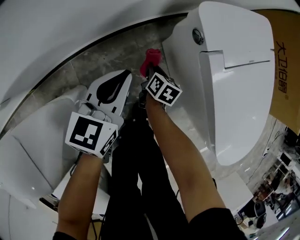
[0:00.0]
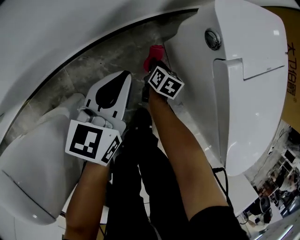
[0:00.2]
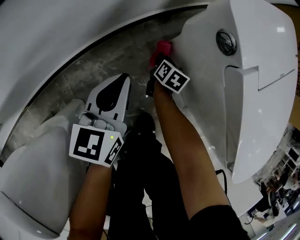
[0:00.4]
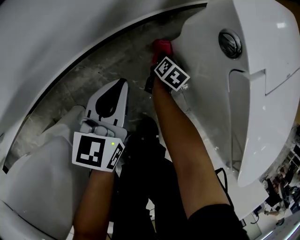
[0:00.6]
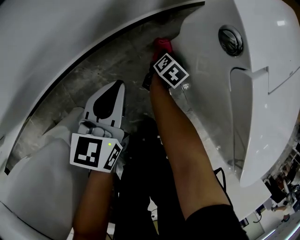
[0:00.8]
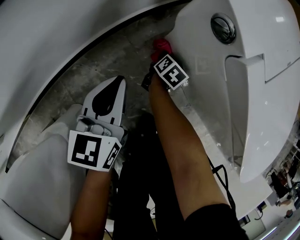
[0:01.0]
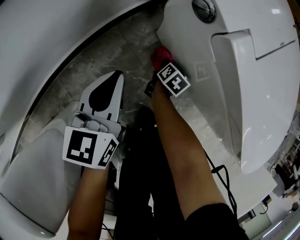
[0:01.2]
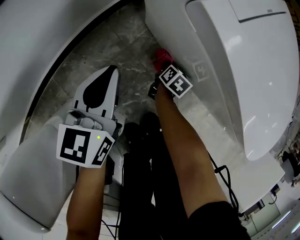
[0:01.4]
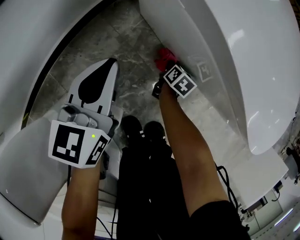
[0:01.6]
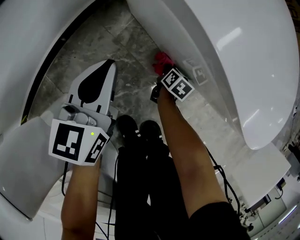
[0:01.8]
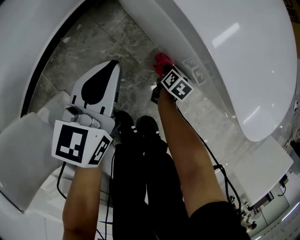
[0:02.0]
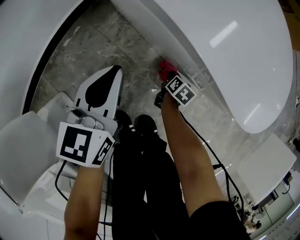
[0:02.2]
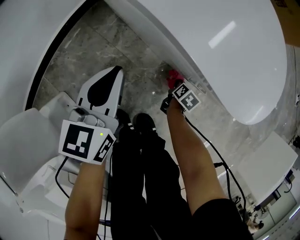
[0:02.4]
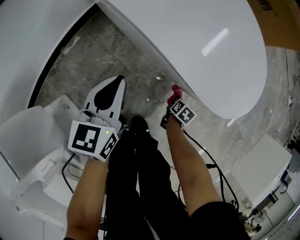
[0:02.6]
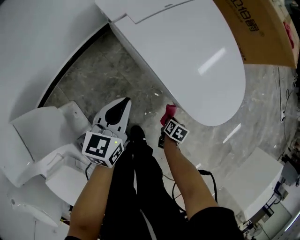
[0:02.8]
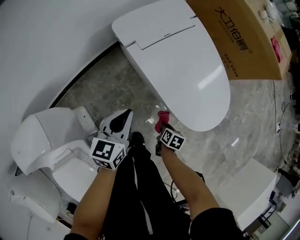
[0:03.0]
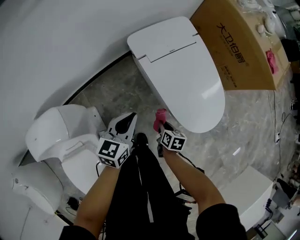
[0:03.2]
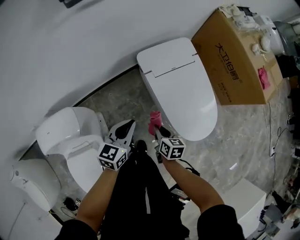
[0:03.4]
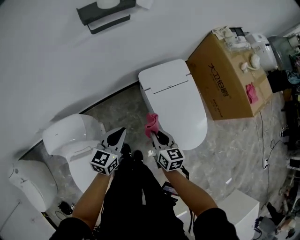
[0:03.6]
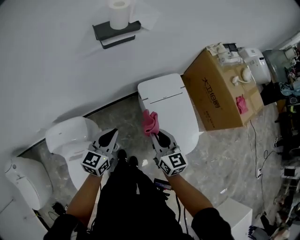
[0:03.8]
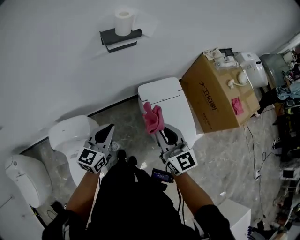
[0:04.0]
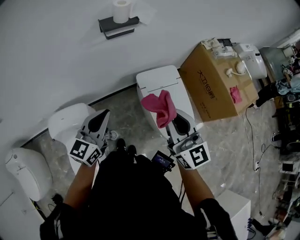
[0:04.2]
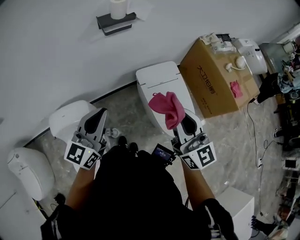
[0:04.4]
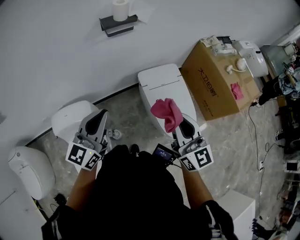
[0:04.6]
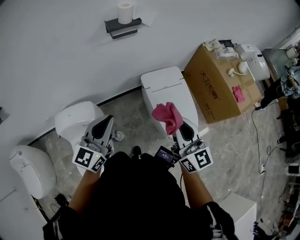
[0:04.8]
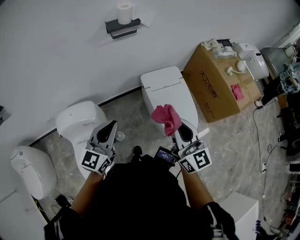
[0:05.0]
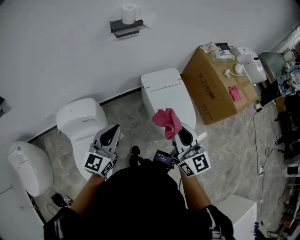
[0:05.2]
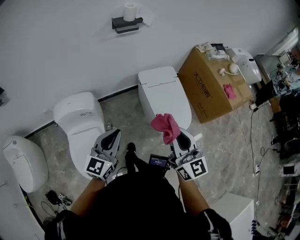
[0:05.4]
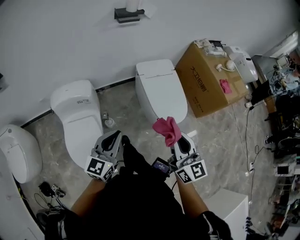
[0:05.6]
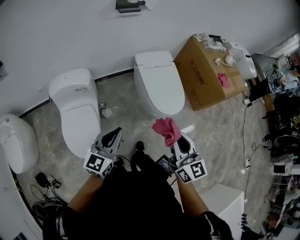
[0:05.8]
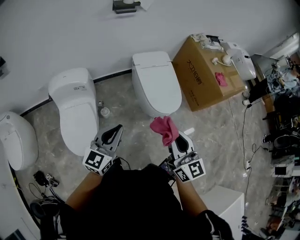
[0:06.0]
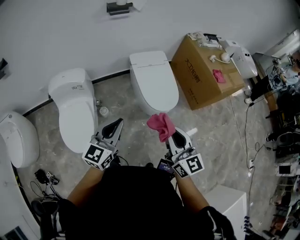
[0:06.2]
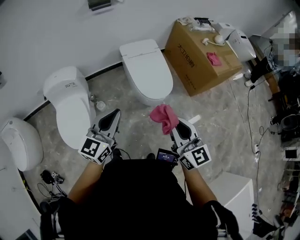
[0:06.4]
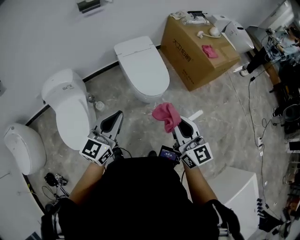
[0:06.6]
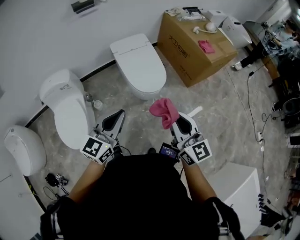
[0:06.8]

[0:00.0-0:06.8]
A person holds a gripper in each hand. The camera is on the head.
0:00.0 to 0:01.4: The right gripper heads to the right and downward, covering roughly 20 cm, and changes its angle by some 30 degrees. The left gripper moves downward, roughly 10 cm.
0:01.4 to 0:02.8: The right gripper shifts approximately 35 cm to the right, backward and upward. Meanwhile the left gripper goes roughly 20 cm to the right and upward.
0:02.8 to 0:04.0: The right gripper travels upward by about 80 cm, and angles its fingers upward, by some 70 degrees. The left gripper shifts some 50 cm upward, and turns by roughly 20 degrees.
0:04.0 to 0:05.4: Both grippers move backward, some 25 cm.
0:05.4 to 0:06.8: The two grippers go some 30 cm to the right and backward.

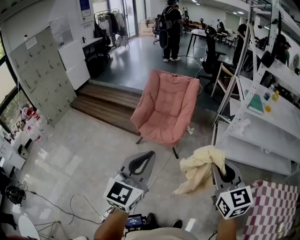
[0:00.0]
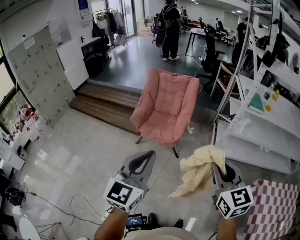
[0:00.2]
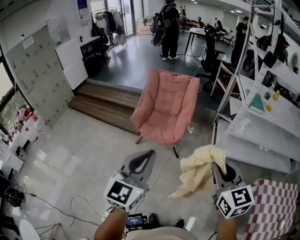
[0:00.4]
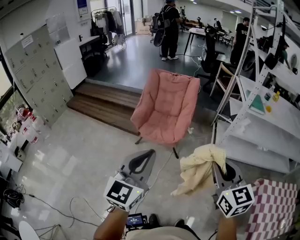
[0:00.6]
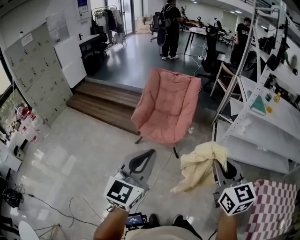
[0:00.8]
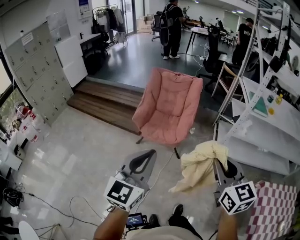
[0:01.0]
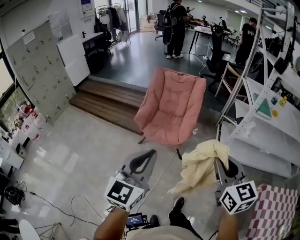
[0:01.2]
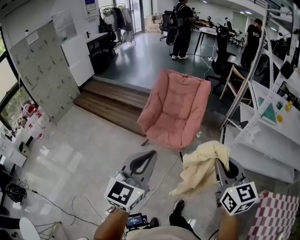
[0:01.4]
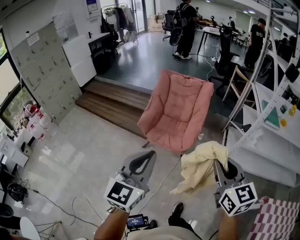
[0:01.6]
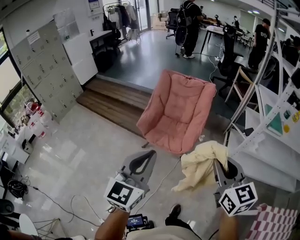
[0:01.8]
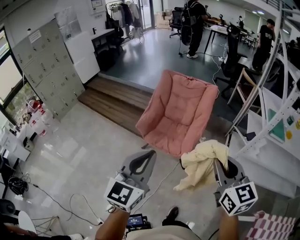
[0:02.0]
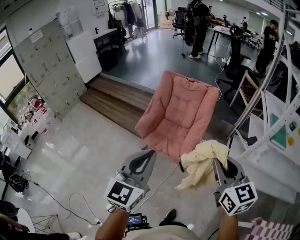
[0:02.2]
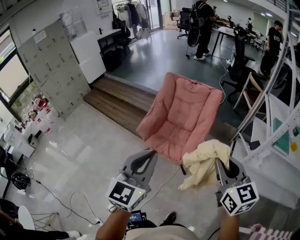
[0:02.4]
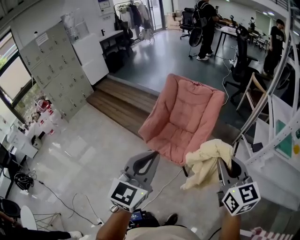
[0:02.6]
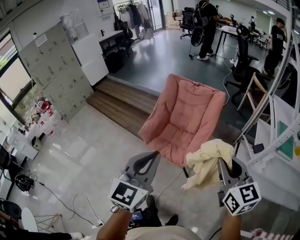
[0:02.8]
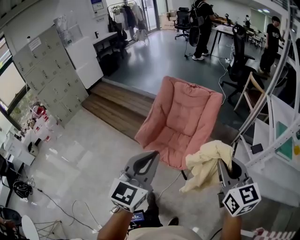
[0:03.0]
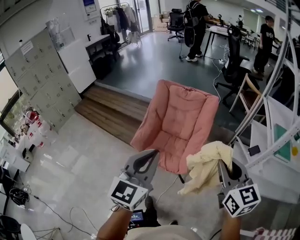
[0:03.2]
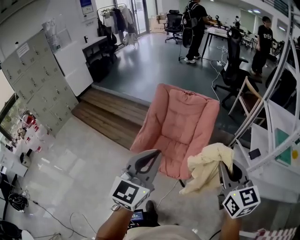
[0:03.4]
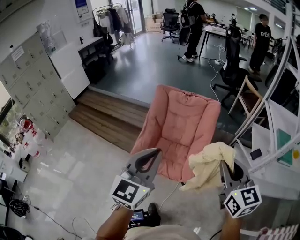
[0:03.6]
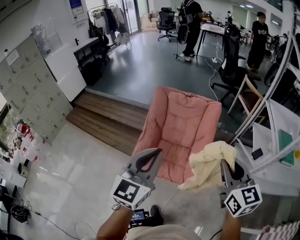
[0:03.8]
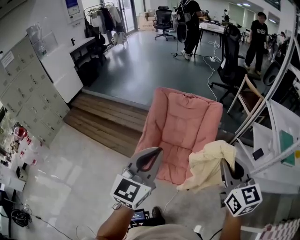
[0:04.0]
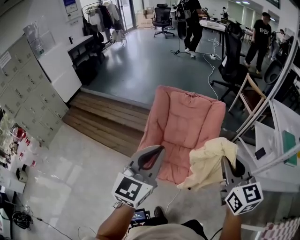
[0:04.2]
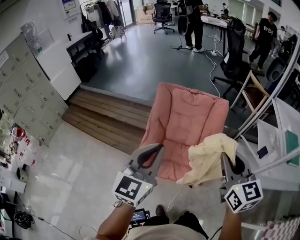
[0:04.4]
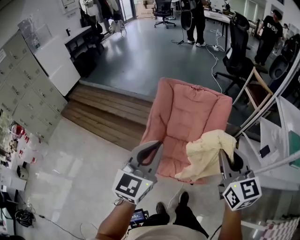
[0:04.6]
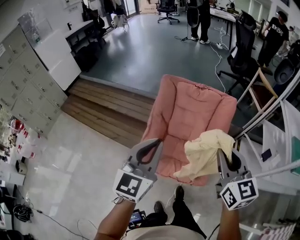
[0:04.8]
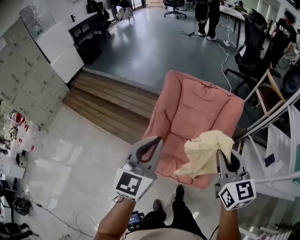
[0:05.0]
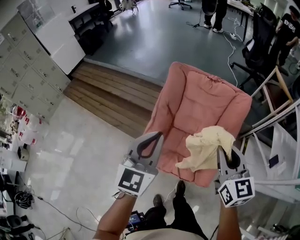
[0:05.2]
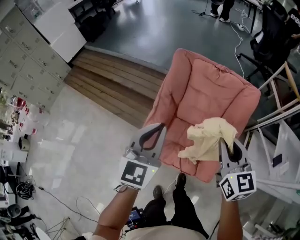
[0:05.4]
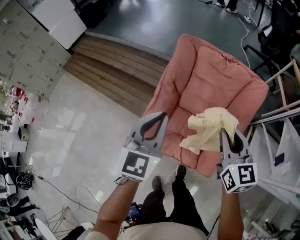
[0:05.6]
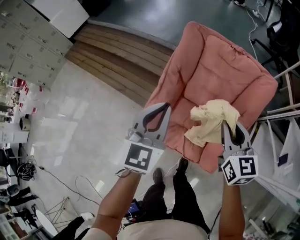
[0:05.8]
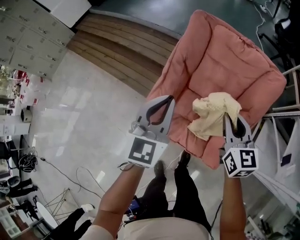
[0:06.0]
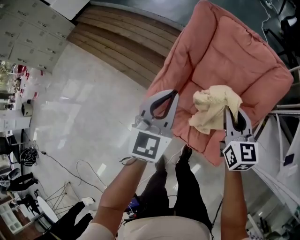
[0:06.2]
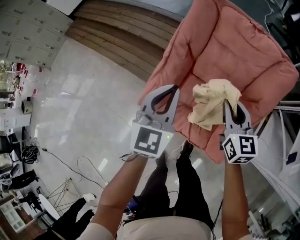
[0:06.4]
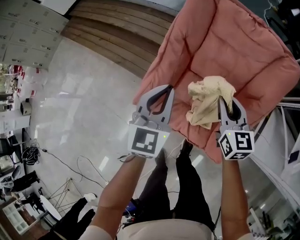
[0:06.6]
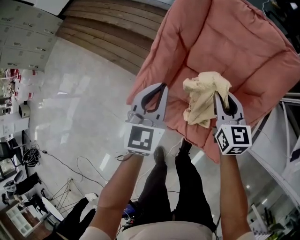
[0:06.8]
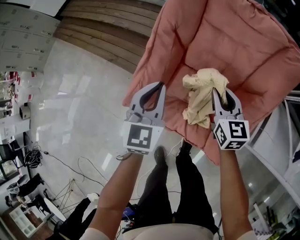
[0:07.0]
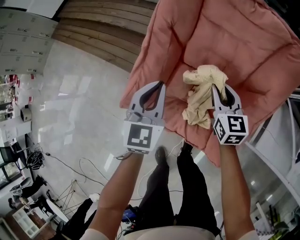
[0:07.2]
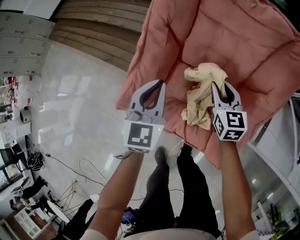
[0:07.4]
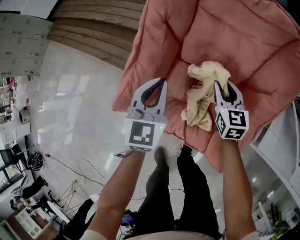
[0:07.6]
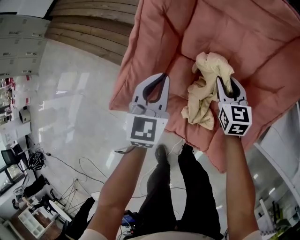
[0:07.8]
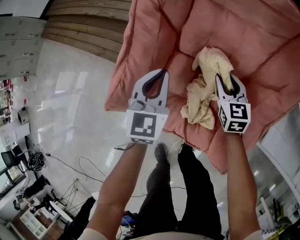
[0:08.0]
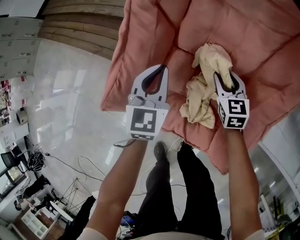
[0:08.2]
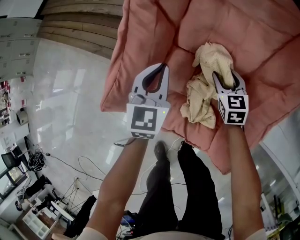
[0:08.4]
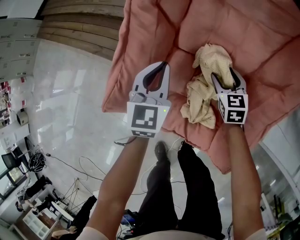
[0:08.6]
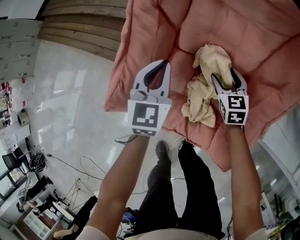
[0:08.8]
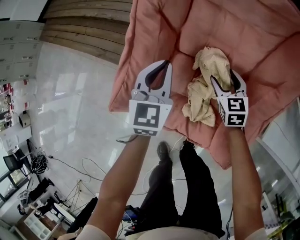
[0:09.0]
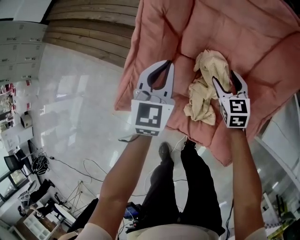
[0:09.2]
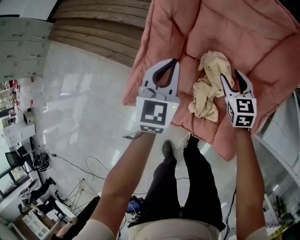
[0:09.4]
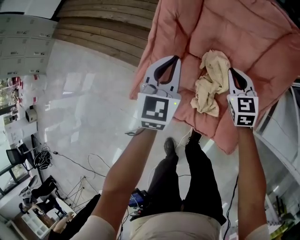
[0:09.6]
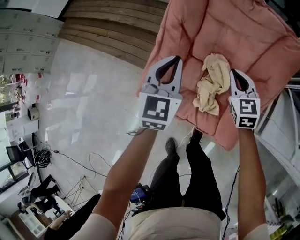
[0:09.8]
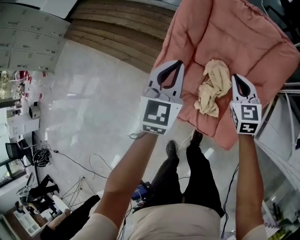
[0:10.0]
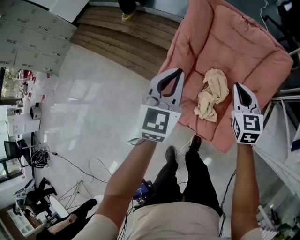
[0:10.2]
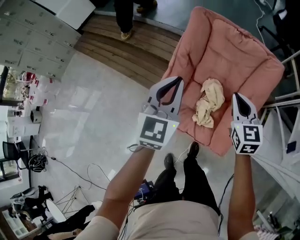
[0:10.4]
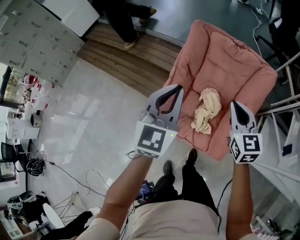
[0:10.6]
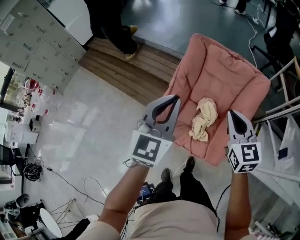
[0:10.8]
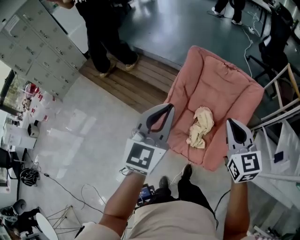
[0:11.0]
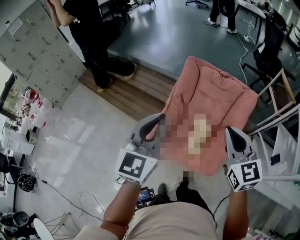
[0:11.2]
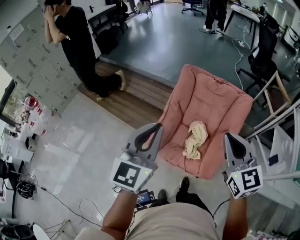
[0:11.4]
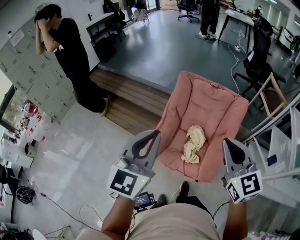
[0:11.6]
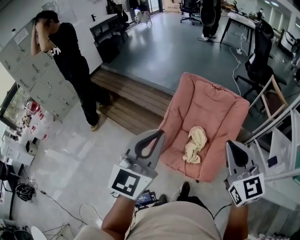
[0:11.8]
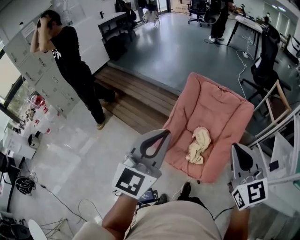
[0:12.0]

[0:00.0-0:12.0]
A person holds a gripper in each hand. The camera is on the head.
0:00.0 to 0:01.6: The two grippers go some 15 cm forward.
0:01.6 to 0:03.0: The left gripper goes some 25 cm forward and to the right, while the right gripper shifts roughly 25 cm forward.
0:03.0 to 0:04.4: Both grippers travel together forward and to the left, some 30 cm.
0:04.4 to 0:06.0: The two grippers go about 35 cm downward and forward.
0:06.0 to 0:07.6: The grippers both shift downward by some 30 cm.
0:07.6 to 0:09.0: The right gripper goes approximately 10 cm downward, and opens its fingers.
0:09.0 to 0:10.4: The two grippers go about 40 cm upward. The right gripper closes its fingers.
0:10.4 to 0:12.0: Both grippers travel together upward and backward, about 35 cm.

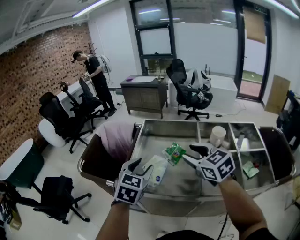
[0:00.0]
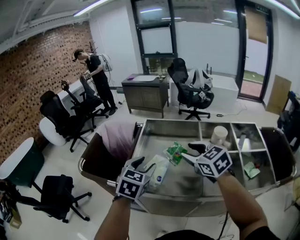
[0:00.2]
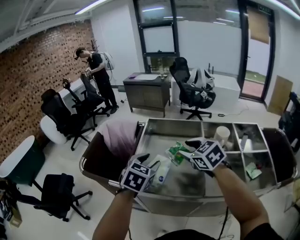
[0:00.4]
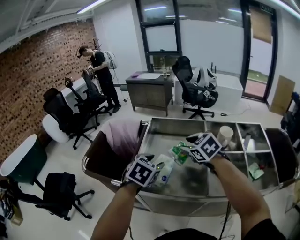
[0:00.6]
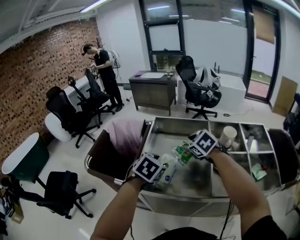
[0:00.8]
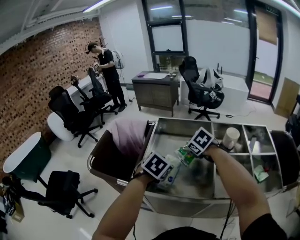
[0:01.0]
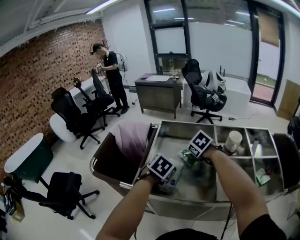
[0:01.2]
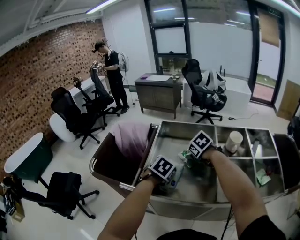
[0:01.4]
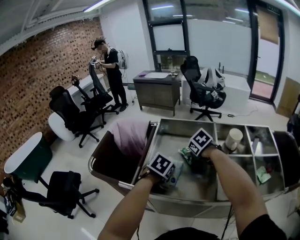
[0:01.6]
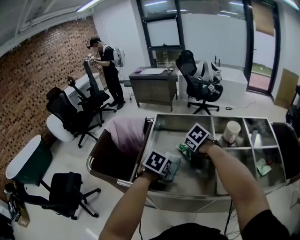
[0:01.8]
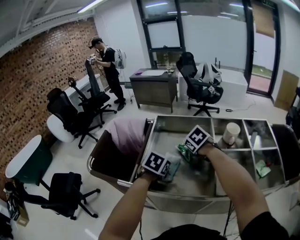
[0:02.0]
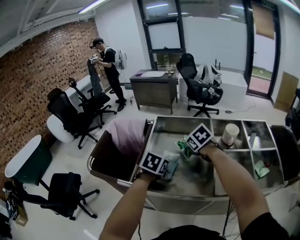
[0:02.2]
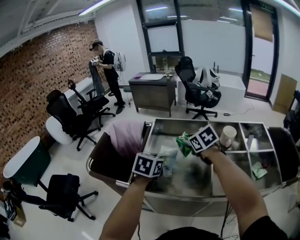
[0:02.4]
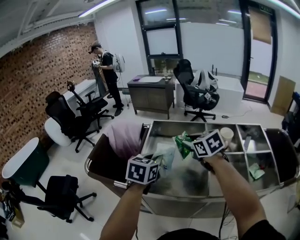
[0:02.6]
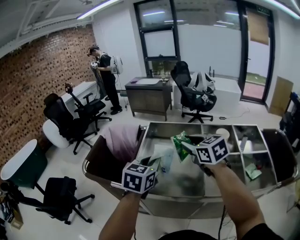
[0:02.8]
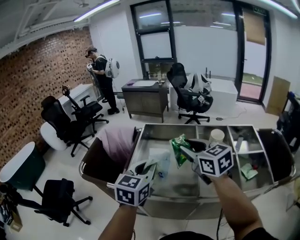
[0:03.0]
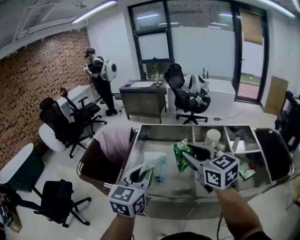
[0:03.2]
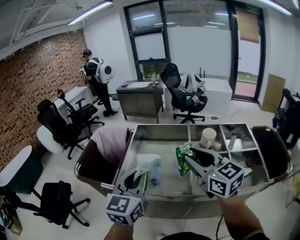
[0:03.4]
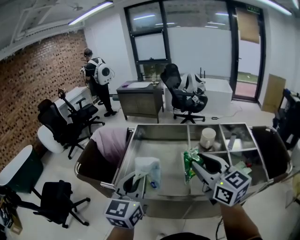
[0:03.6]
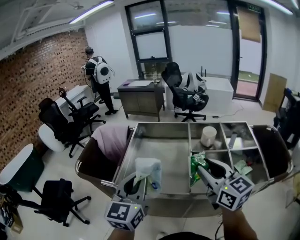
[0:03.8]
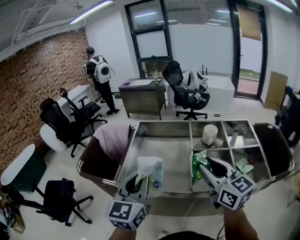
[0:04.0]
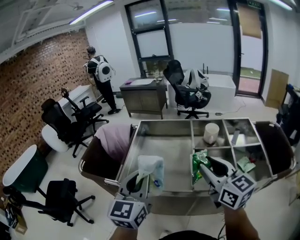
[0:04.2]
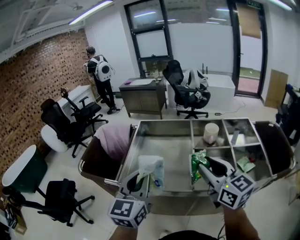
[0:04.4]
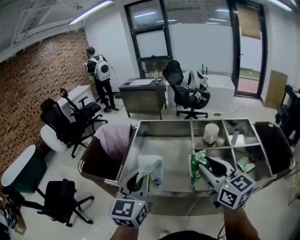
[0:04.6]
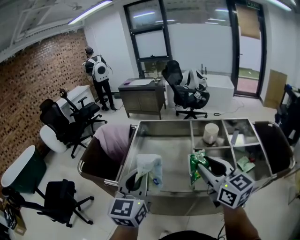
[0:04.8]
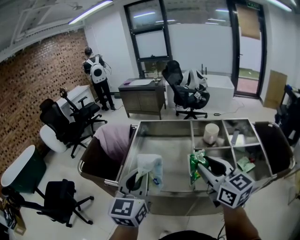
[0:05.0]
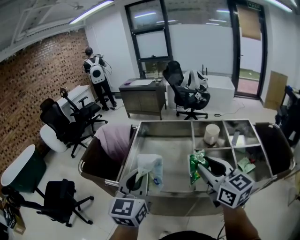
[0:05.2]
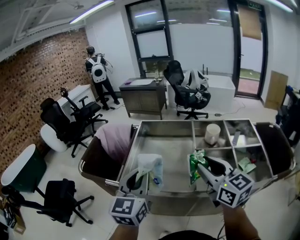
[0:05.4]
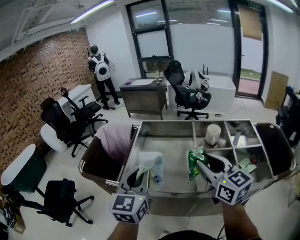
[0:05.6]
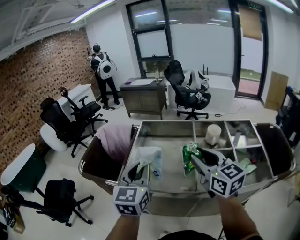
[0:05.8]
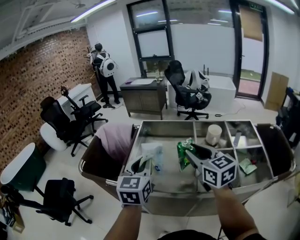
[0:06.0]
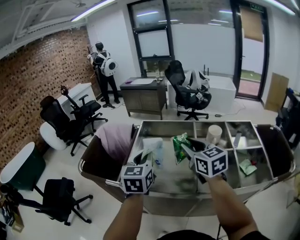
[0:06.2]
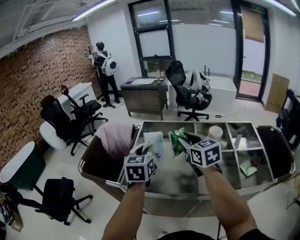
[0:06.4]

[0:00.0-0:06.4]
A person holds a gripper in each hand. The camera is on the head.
0:00.0 to 0:01.6: The left gripper travels downward by roughly 15 cm, and points its fingers approximately 30 degrees further downward. Meanwhile the right gripper goes approximately 20 cm downward and forward, and tips its fingers downward by about 40 degrees.
0:01.6 to 0:03.2: The two grippers go roughly 25 cm upward and backward. The left gripper angles its fingers upward, by approximately 50 degrees, and closes; the right gripper points its fingers about 50 degrees further upward.
0:03.2 to 0:04.8: The right gripper goes roughly 10 cm backward.
0:04.8 to 0:06.4: Both grippers move forward, about 15 cm.
